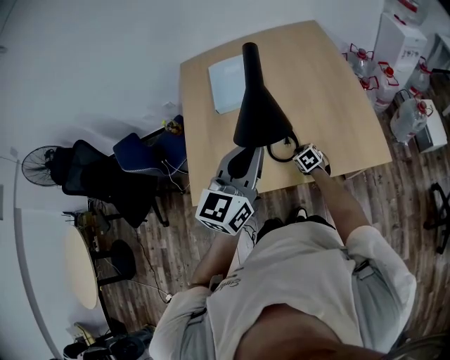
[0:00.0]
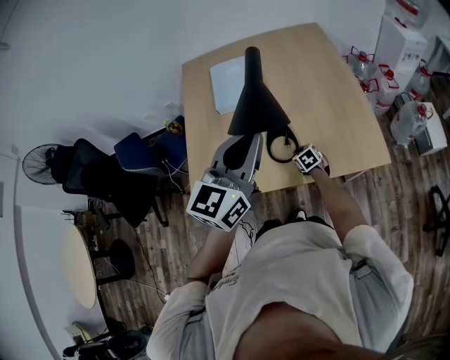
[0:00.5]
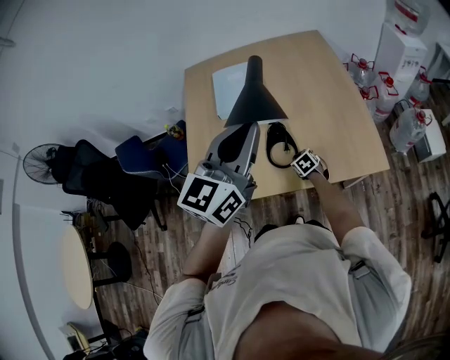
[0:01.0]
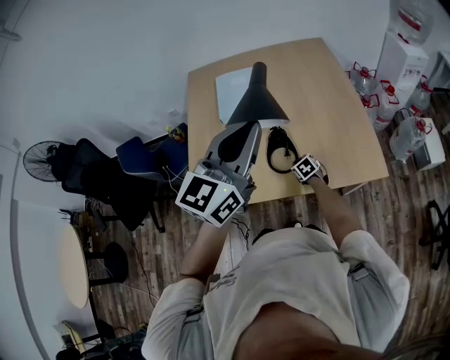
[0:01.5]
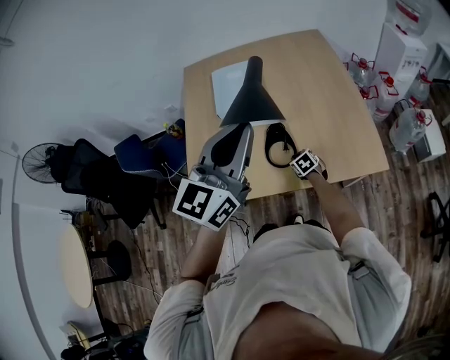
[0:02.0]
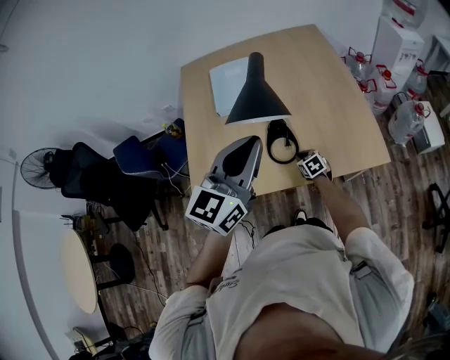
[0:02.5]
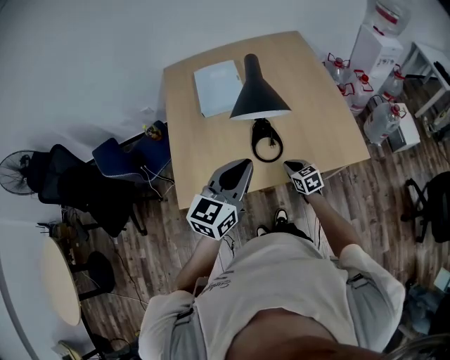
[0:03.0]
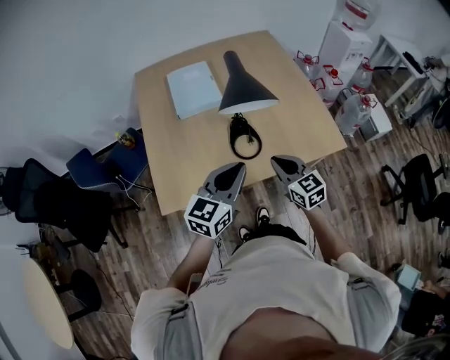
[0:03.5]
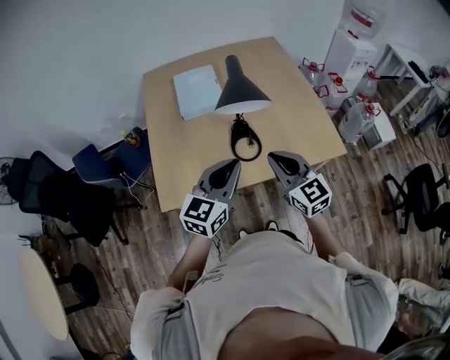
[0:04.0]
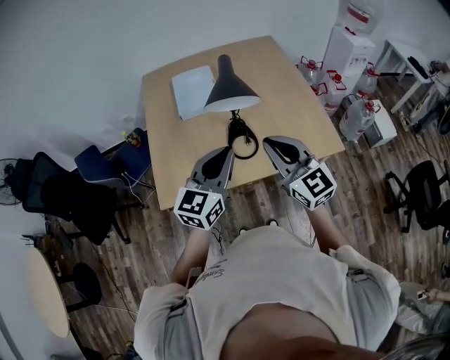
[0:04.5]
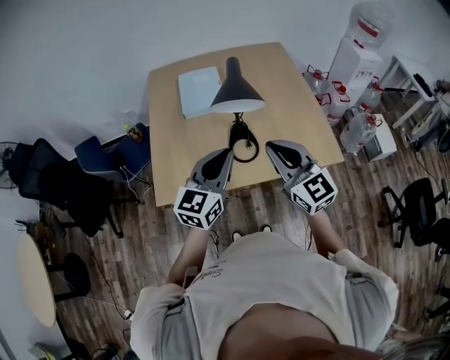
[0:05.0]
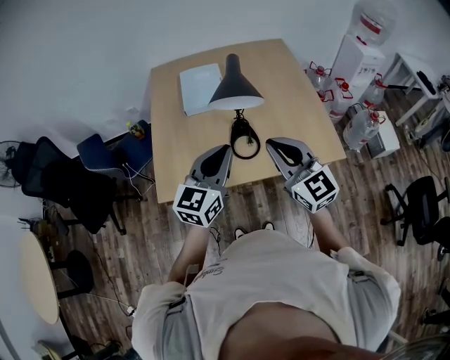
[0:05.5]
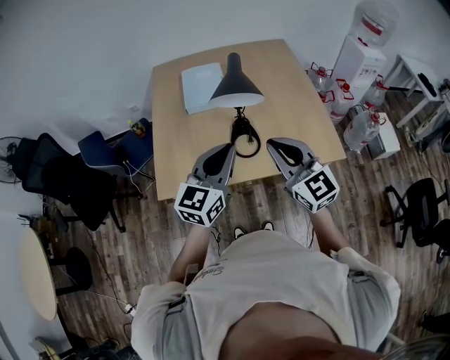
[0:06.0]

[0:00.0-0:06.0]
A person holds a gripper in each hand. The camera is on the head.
0:00.0 to 0:02.0: The left gripper moves upward, some 10 cm.
0:02.0 to 0:04.0: The left gripper moves downward and backward, about 15 cm. The right gripper shifts roughly 40 cm upward and backward, and angles its fingers upward, by roughly 40 degrees.
0:04.0 to 0:06.0: The right gripper goes about 10 cm upward.

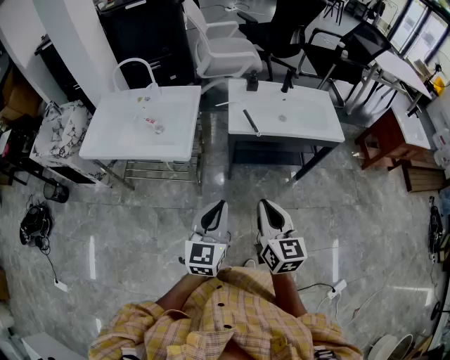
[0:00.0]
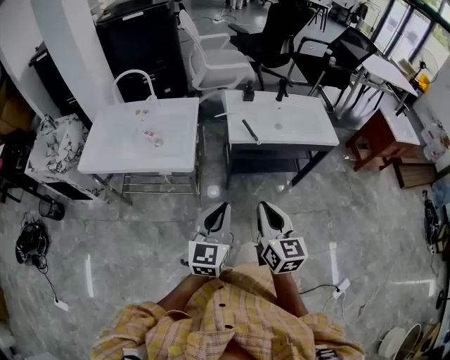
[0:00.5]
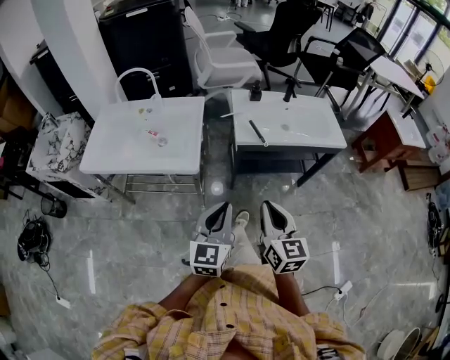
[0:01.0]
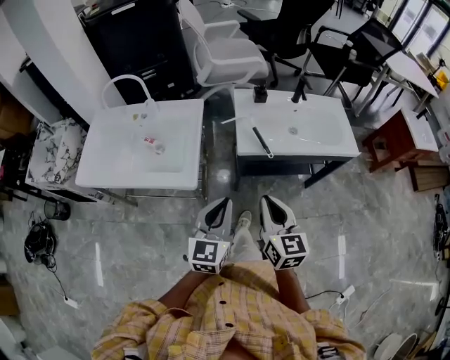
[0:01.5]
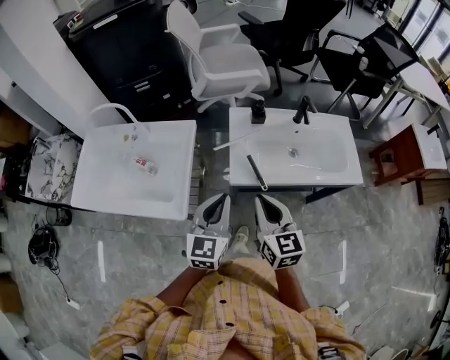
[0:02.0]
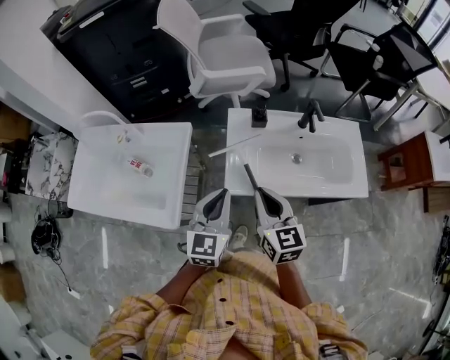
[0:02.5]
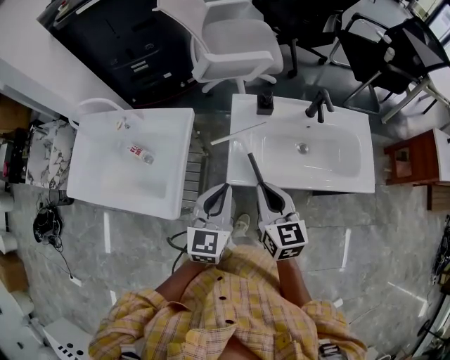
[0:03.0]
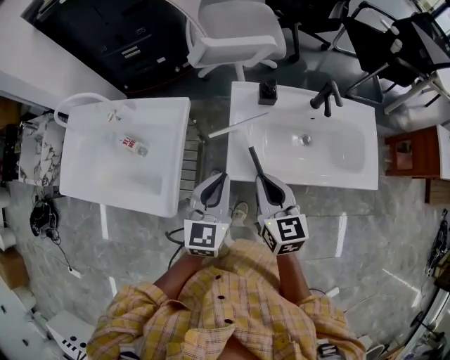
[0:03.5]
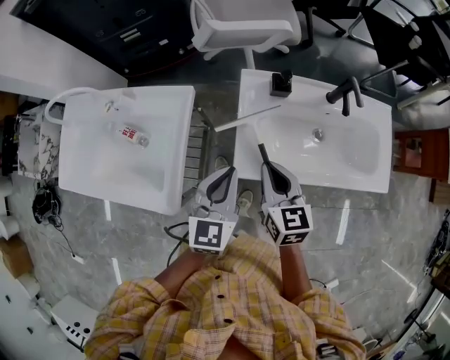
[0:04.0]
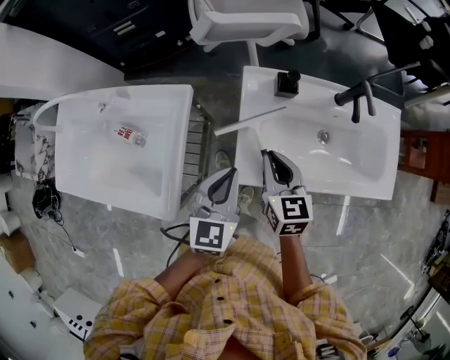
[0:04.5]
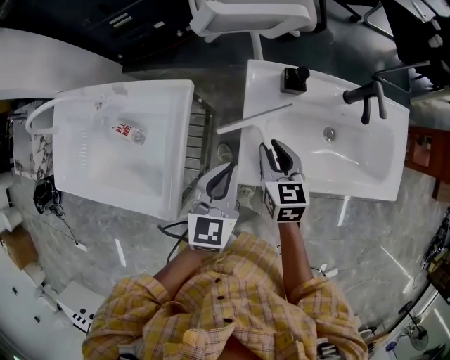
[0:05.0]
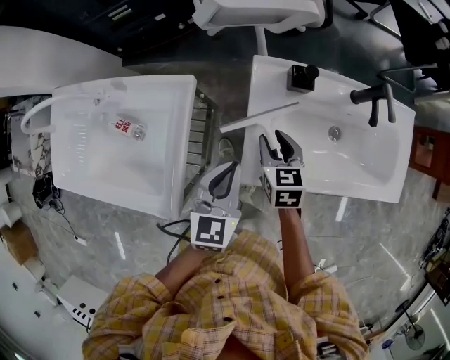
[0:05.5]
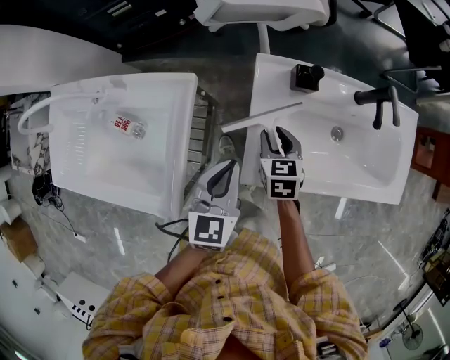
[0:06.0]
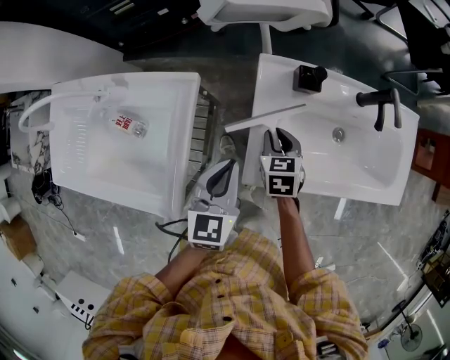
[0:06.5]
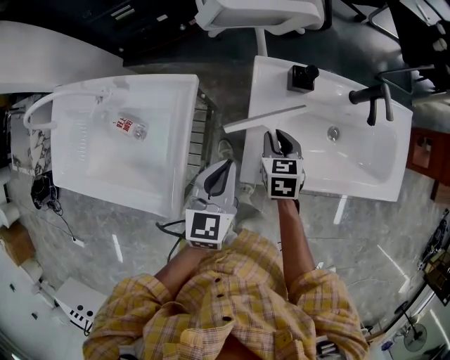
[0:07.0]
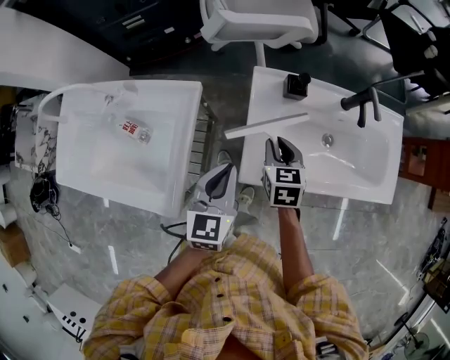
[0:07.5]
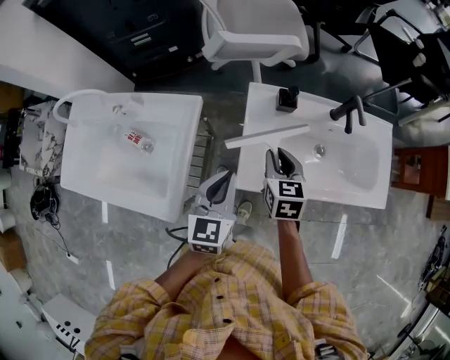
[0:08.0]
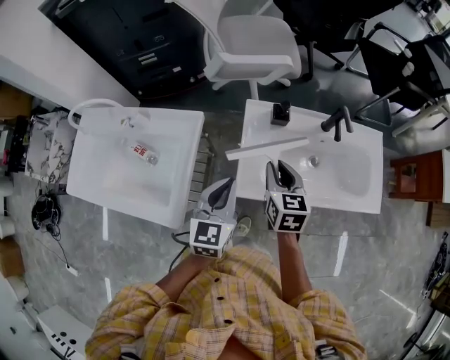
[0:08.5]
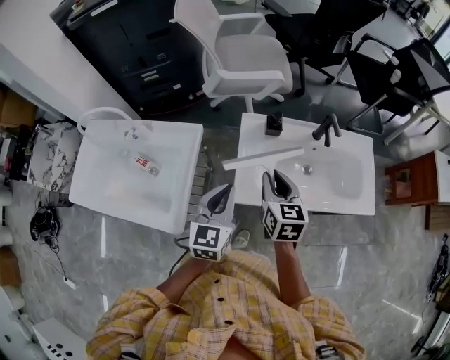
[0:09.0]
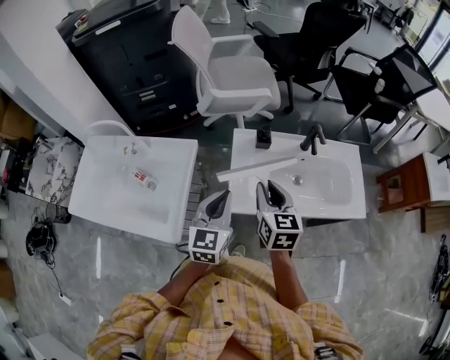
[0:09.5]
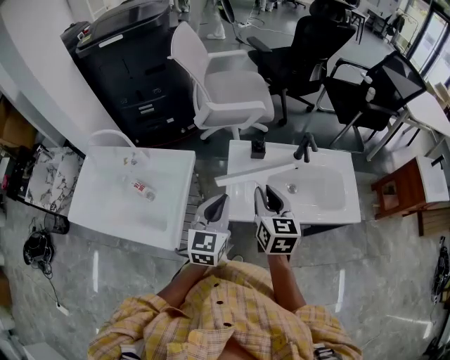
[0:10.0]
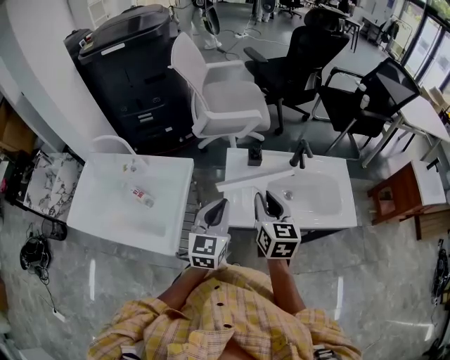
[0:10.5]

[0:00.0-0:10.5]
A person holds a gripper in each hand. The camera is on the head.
0:00.0 to 0:02.0: Both grippers travel together forward, roughly 30 cm.
0:02.0 to 0:04.0: Both grippers travel together forward and downward, about 20 cm.
0:04.0 to 0:06.5: The left gripper goes about 10 cm downward; the right gripper is displaced downward and forward by roughly 20 cm, and changes its angle by approximately 30 degrees.
0:06.5 to 0:08.5: The right gripper moves upward, about 20 cm, and swivels some 20 degrees. Meanwhile the left gripper moves upward, about 10 cm.
0:08.5 to 0:10.5: The right gripper goes roughly 15 cm upward and backward. The left gripper travels upward by approximately 10 cm.

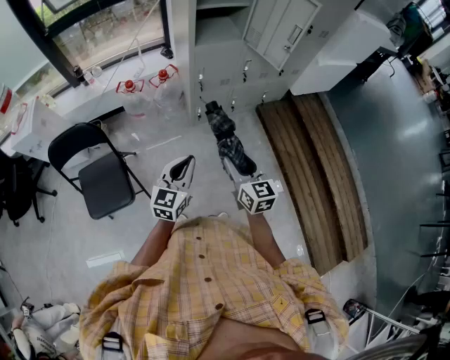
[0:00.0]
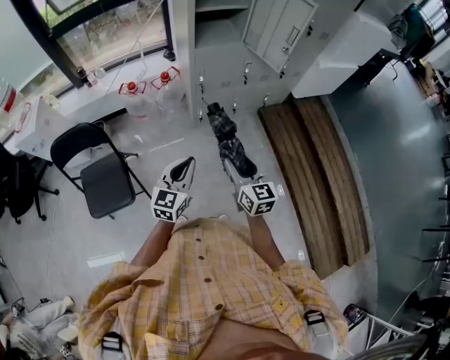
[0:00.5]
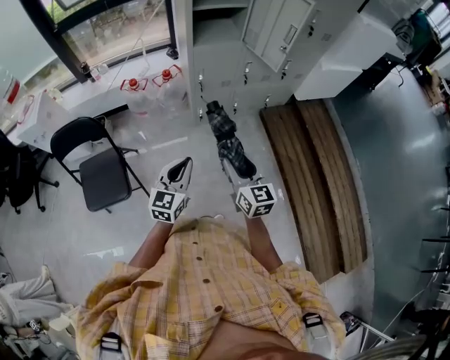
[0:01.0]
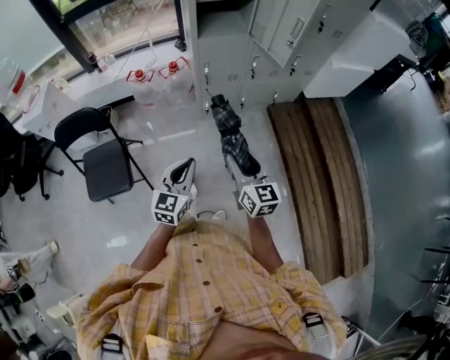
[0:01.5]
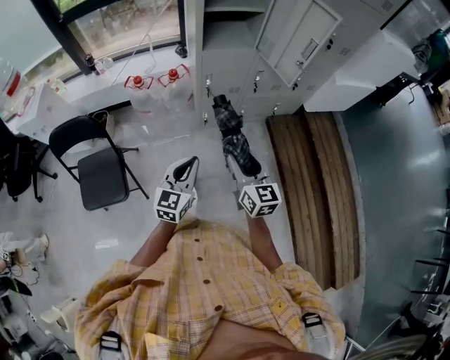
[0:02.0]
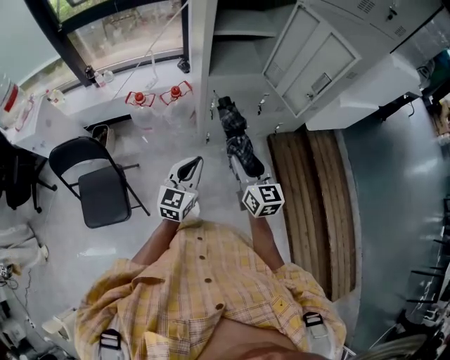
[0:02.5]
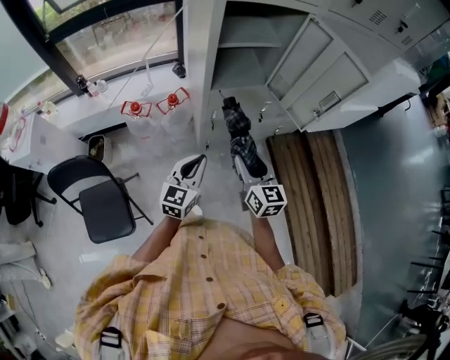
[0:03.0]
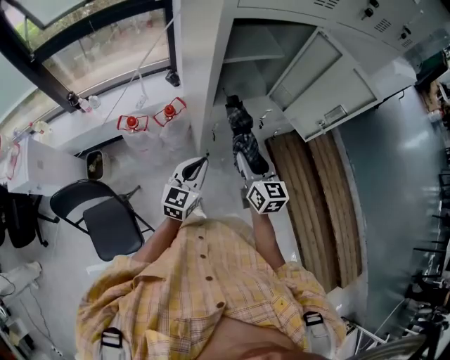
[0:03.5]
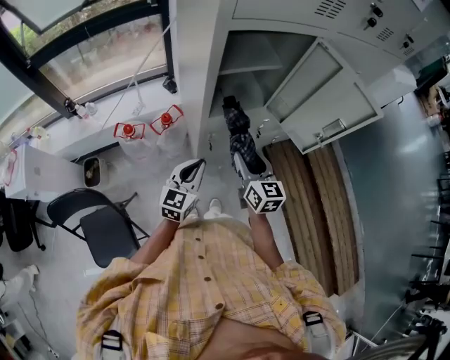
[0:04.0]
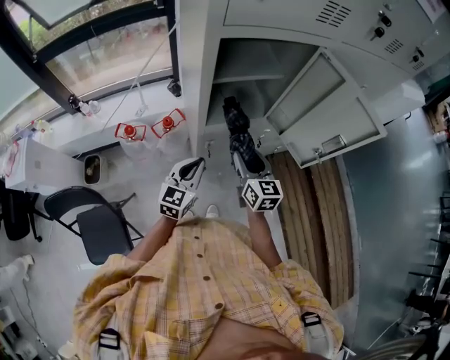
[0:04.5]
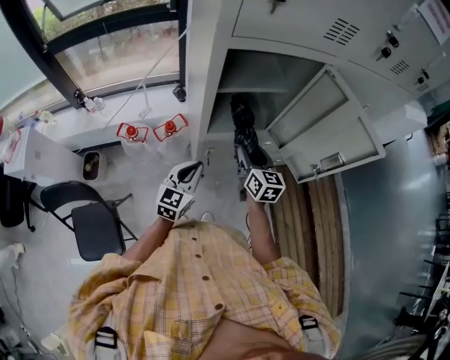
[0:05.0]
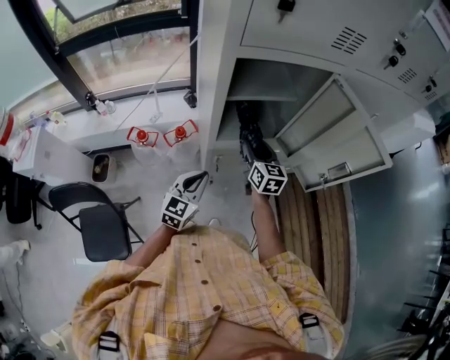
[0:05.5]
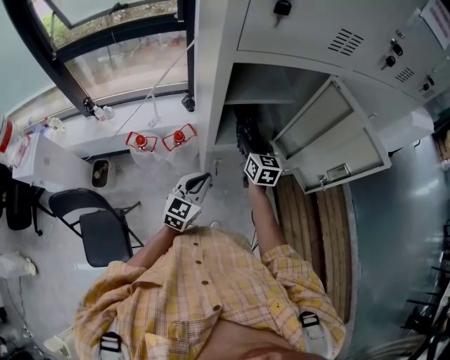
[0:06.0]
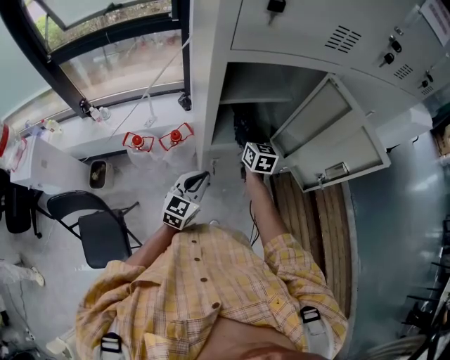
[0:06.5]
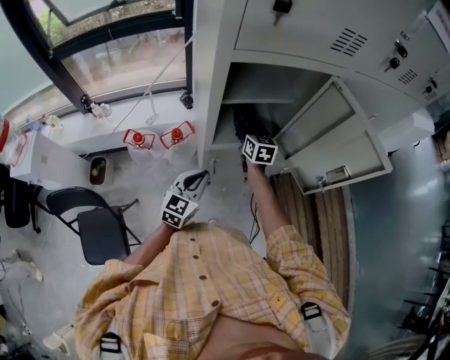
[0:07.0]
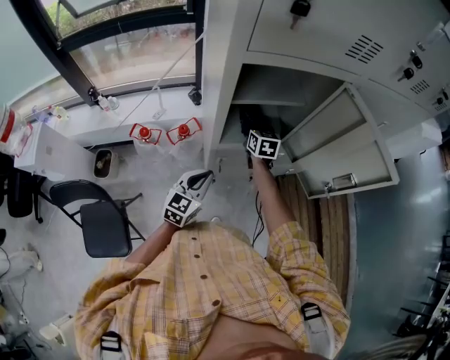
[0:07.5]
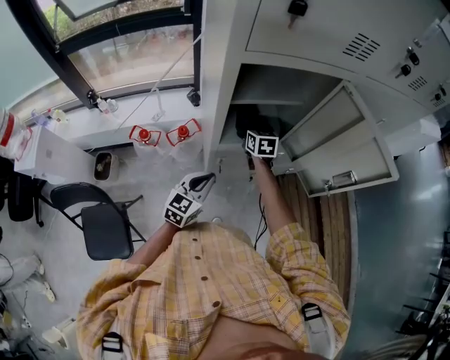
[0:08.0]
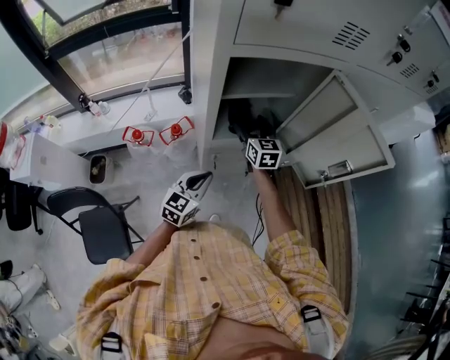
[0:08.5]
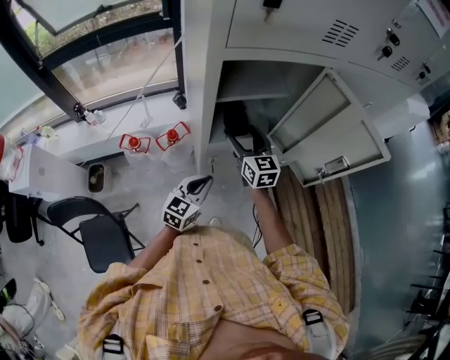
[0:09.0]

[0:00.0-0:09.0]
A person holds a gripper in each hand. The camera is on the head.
0:00.0 to 0:02.0: Both grippers move forward and to the right, approximately 10 cm.
0:02.0 to 0:04.5: The grippers both shift forward by roughly 40 cm.
0:04.5 to 0:07.0: The right gripper travels forward by about 20 cm.
0:07.0 to 0:09.0: The right gripper shifts about 10 cm backward and upward, and opens.

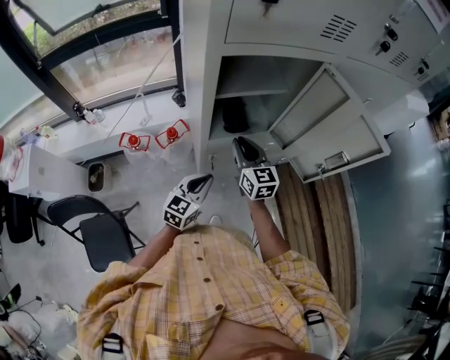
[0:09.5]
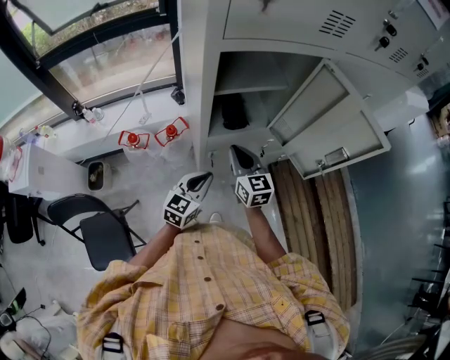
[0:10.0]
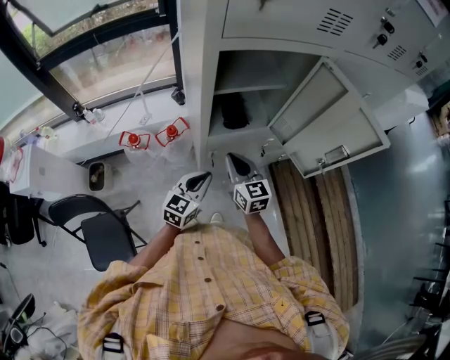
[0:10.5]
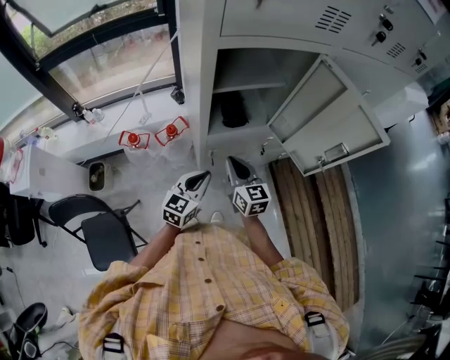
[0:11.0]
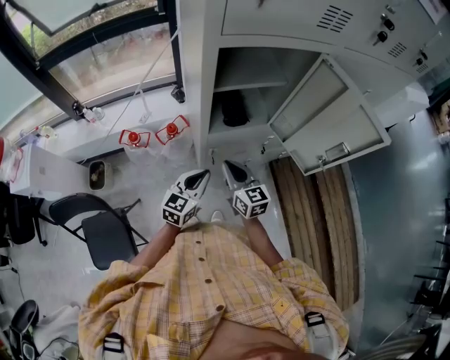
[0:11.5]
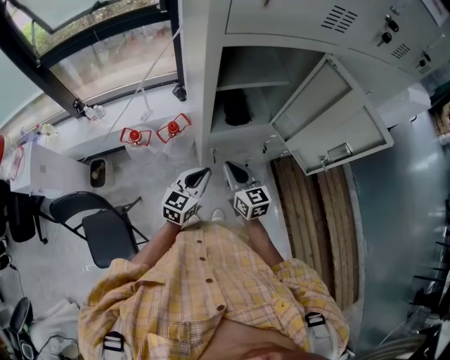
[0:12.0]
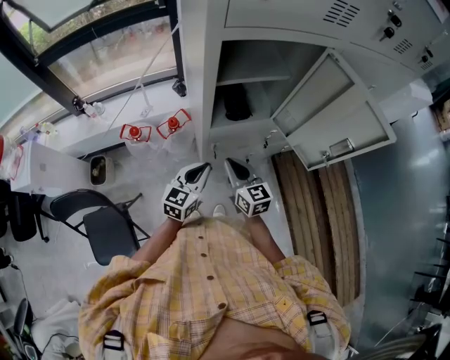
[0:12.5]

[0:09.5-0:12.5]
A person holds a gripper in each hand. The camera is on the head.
0:09.5 to 0:11.0: The right gripper travels backward by about 5 cm.
0:11.0 to 0:12.5: There are only small adjustments of the grippers.
